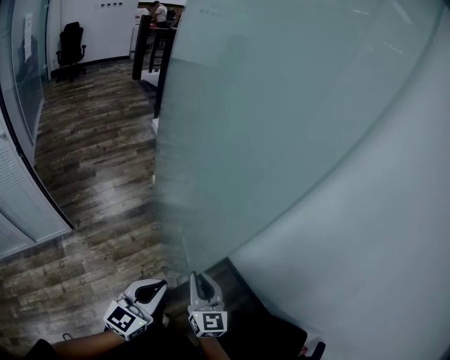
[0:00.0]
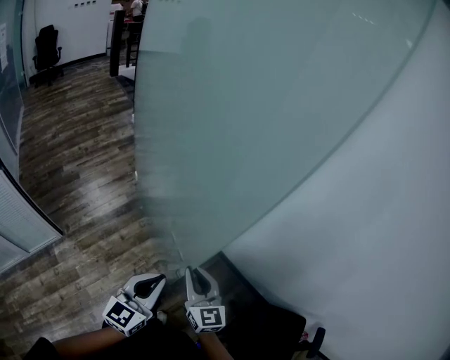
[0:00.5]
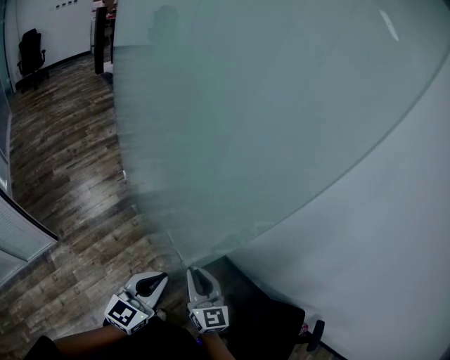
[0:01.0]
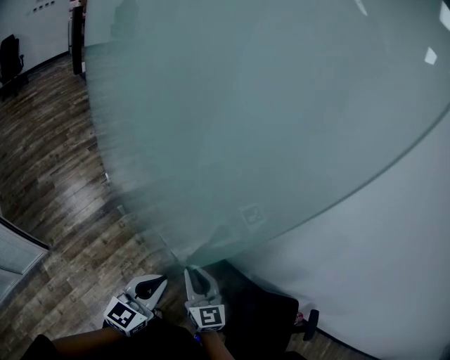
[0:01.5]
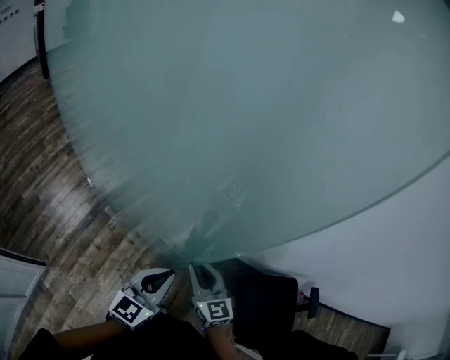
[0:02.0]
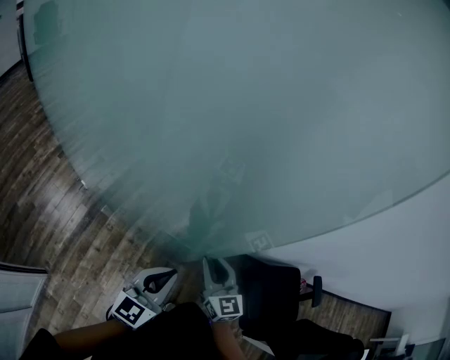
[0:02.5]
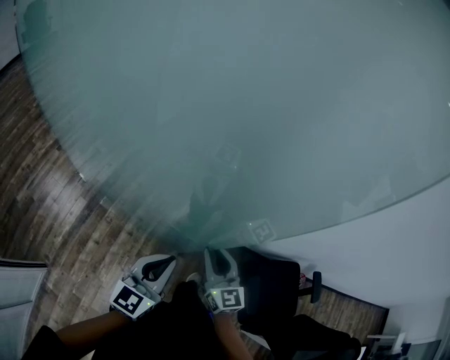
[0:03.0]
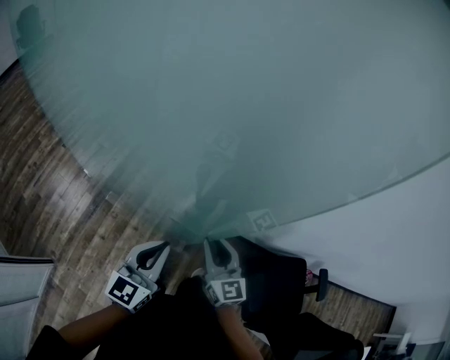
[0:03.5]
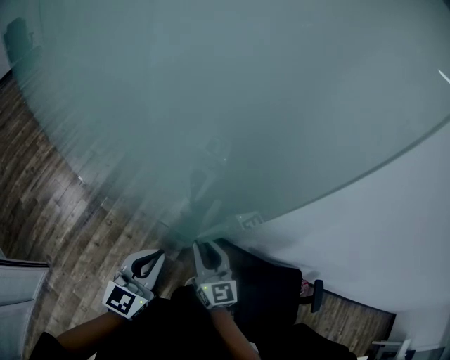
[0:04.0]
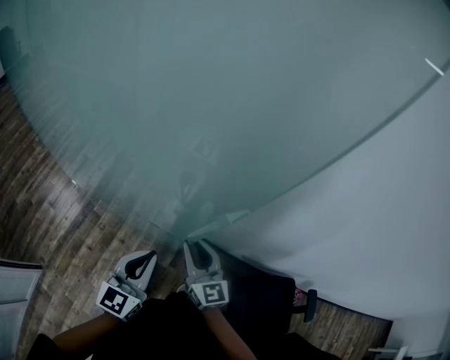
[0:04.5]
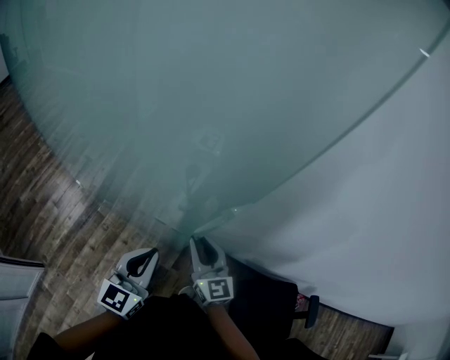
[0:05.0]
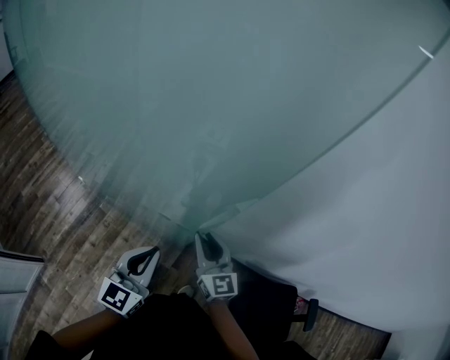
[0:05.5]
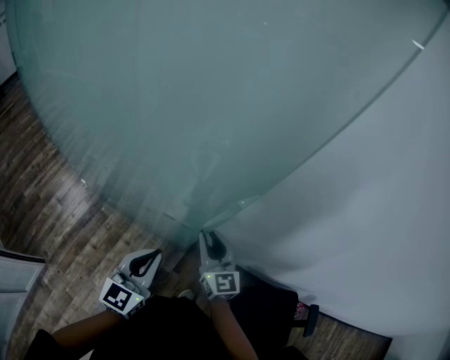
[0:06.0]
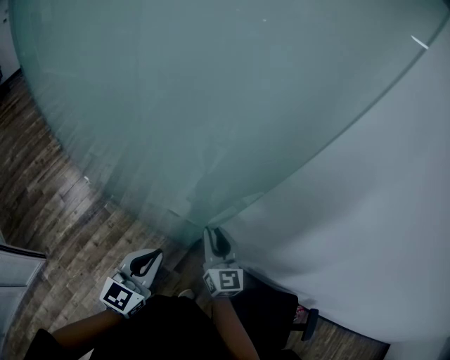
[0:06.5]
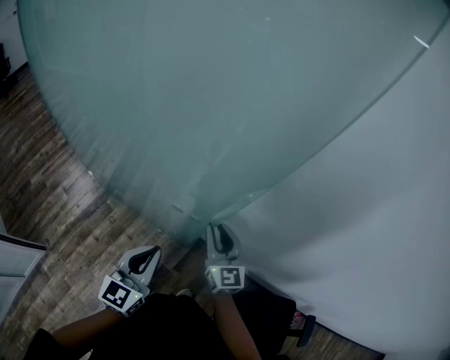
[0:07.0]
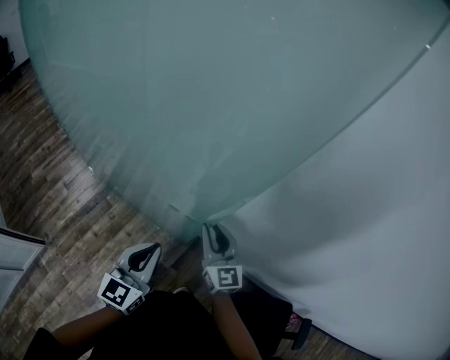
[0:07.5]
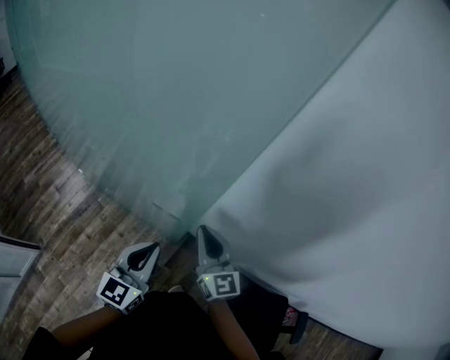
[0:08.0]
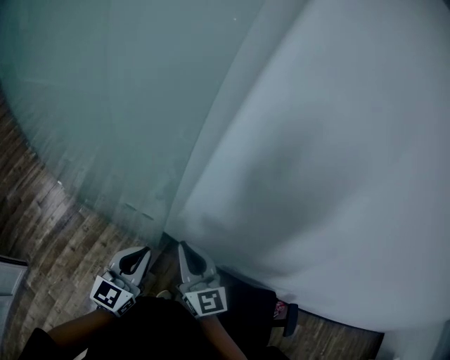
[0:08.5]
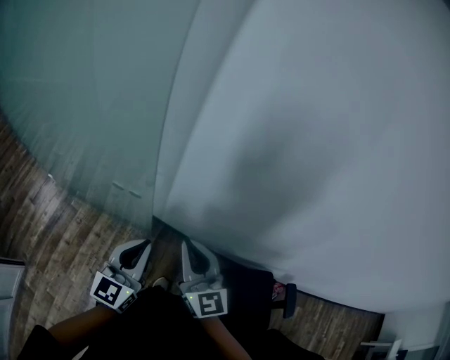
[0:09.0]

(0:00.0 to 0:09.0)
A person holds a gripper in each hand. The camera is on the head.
0:00.0 - 0:02.0: The right gripper goes roughly 15 cm to the right and forward, while the left gripper goes roughly 15 cm forward and to the right, and turns by approximately 30 degrees.
0:02.0 - 0:04.5: The grippers both shift forward by about 10 cm.
0:04.5 - 0:07.0: The right gripper is displaced forward by approximately 10 cm.
0:07.0 - 0:09.0: The left gripper travels to the right by roughly 10 cm. The right gripper goes approximately 15 cm backward, upward and to the right, and closes its fingers.

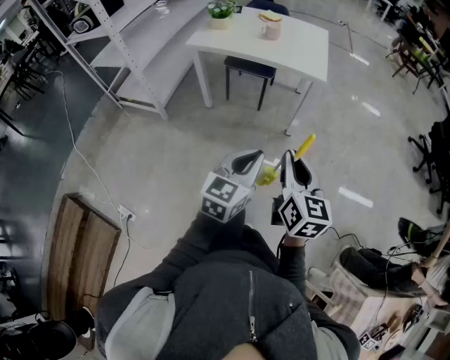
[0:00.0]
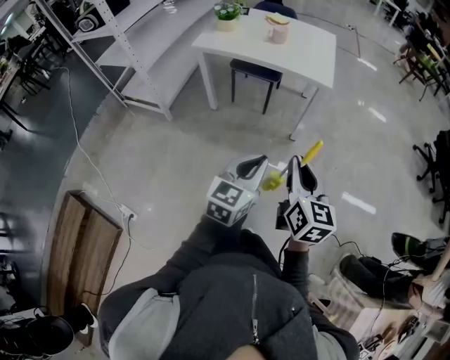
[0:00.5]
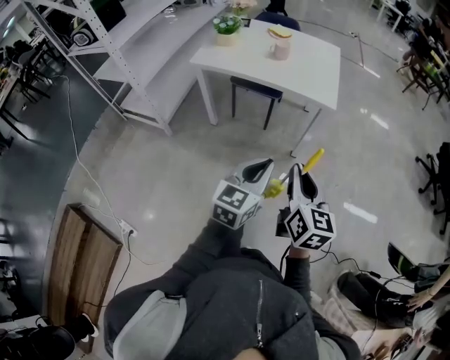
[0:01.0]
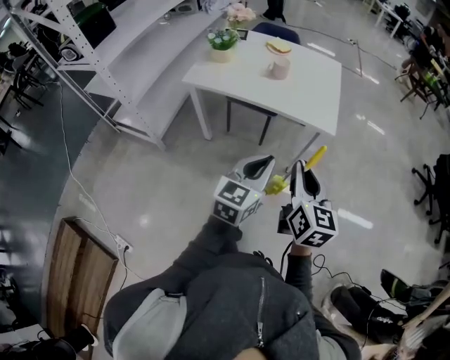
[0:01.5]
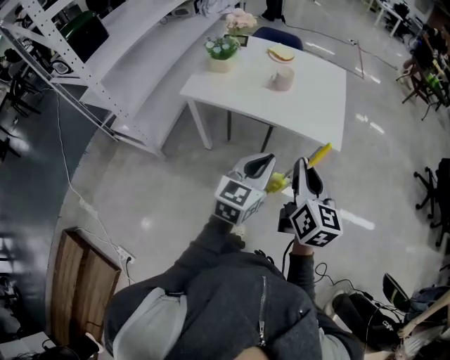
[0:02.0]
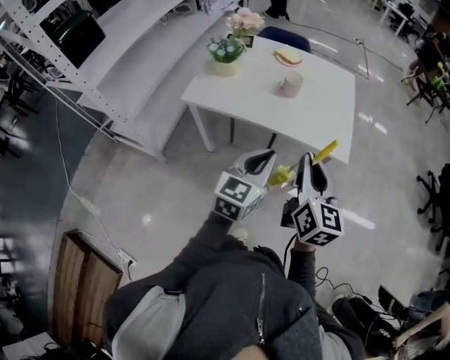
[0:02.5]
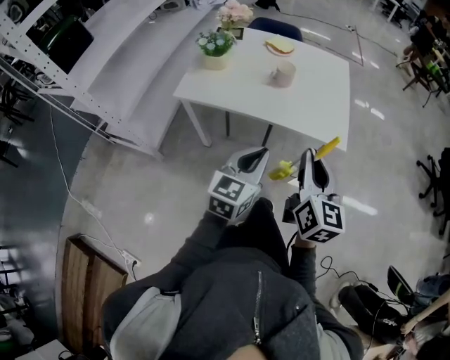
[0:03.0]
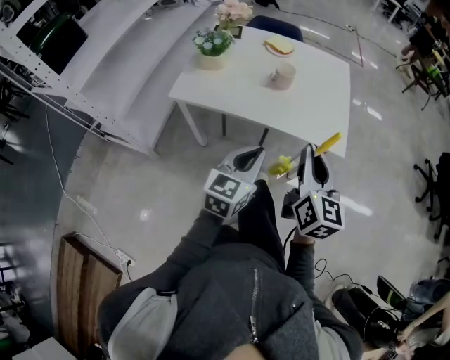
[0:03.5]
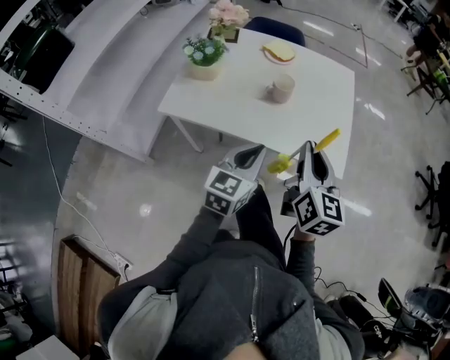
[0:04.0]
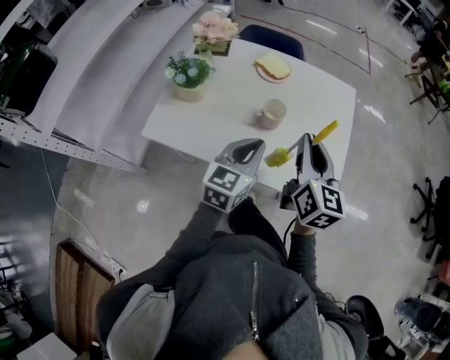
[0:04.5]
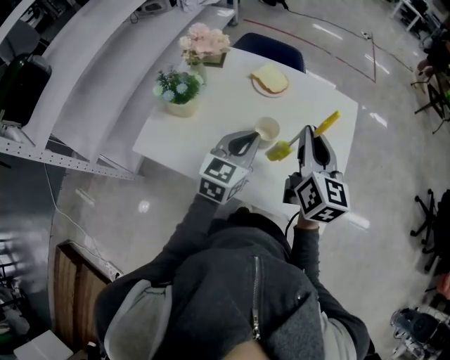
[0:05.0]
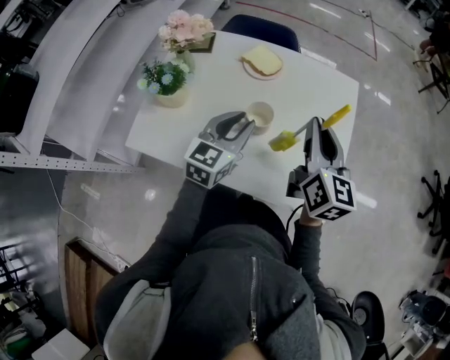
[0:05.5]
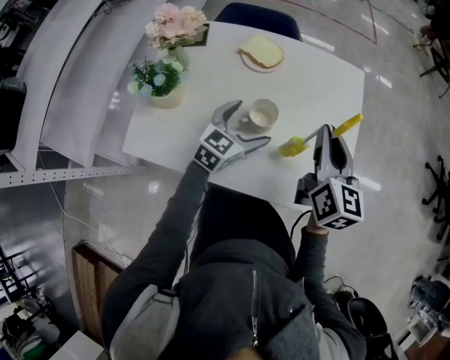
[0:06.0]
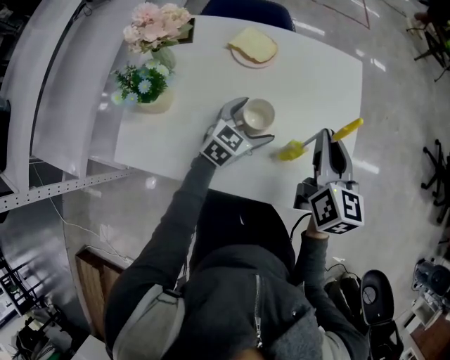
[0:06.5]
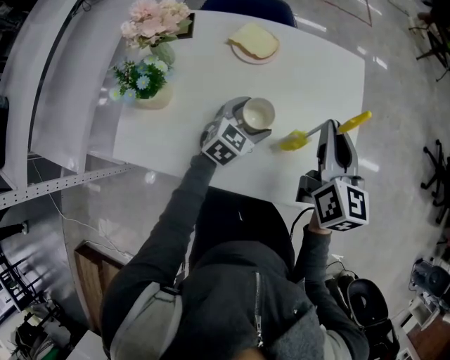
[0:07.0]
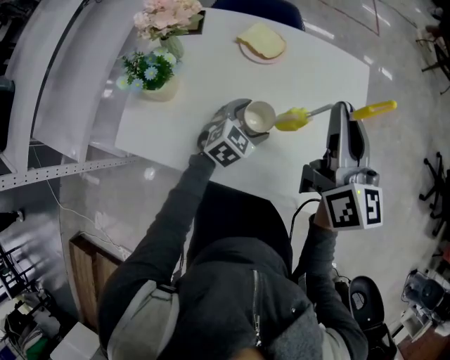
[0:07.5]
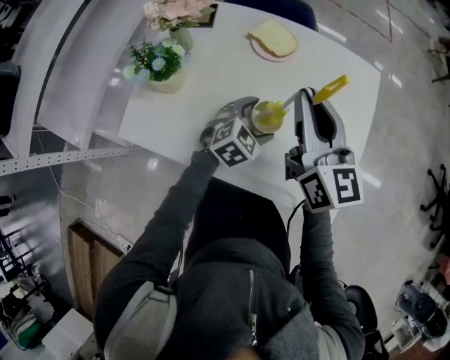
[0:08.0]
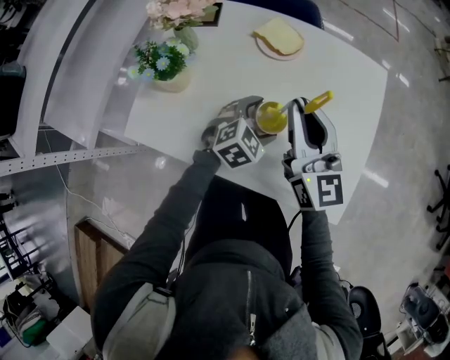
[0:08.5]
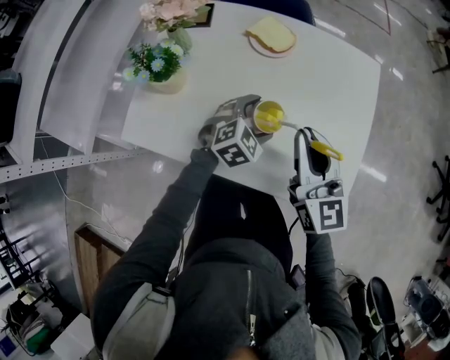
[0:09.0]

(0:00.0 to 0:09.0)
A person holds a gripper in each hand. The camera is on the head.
0:00.0 - 0:02.0: Both grippers move forward, some 35 cm.
0:02.0 - 0:04.5: Both grippers move forward, some 35 cm.
0:04.5 - 0:07.0: The left gripper moves forward and downward, approximately 25 cm, rotates about 30 degrees, and opens its fingers. Meanwhile the right gripper moves forward, some 15 cm.
0:07.0 - 0:09.0: The right gripper goes about 10 cm to the left and backward, and rotates roughly 30 degrees.

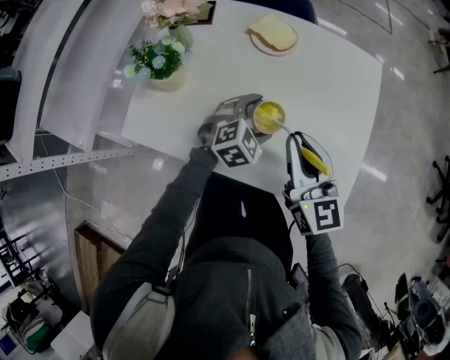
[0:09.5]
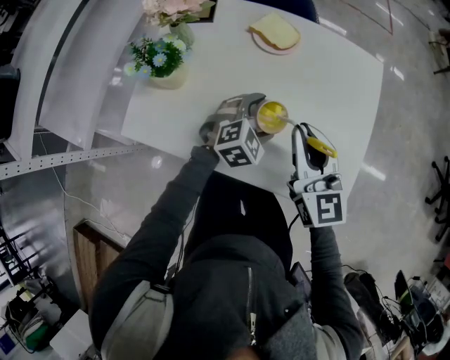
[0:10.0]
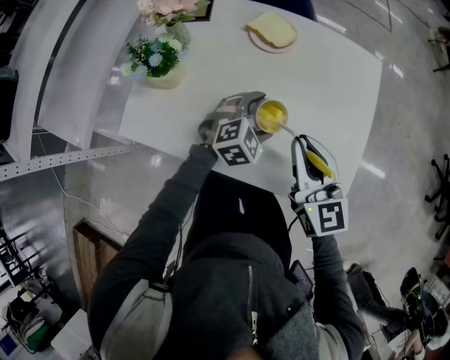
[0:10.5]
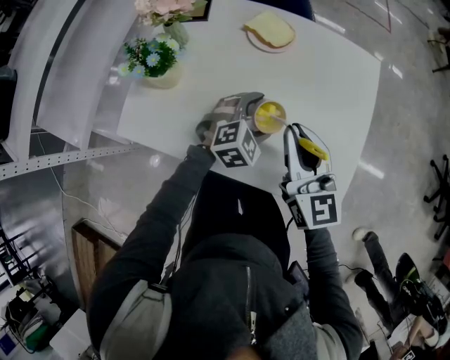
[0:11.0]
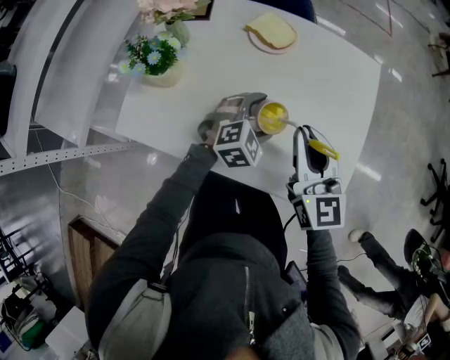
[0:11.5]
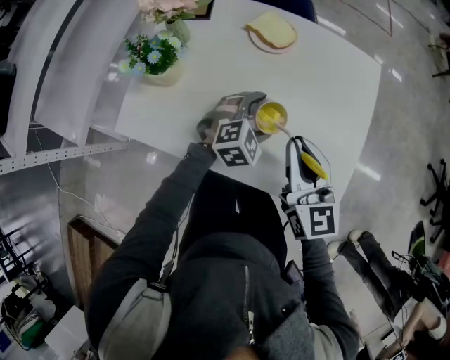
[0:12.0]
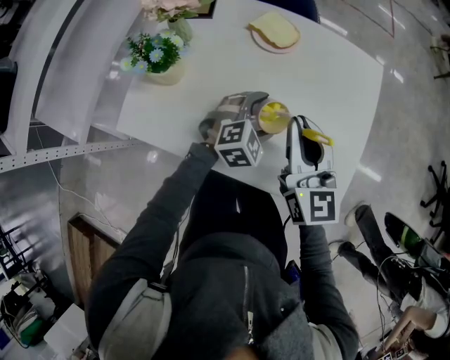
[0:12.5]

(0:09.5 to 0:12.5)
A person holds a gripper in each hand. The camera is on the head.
0:09.5 - 0:12.5: The grippers make only small movements.

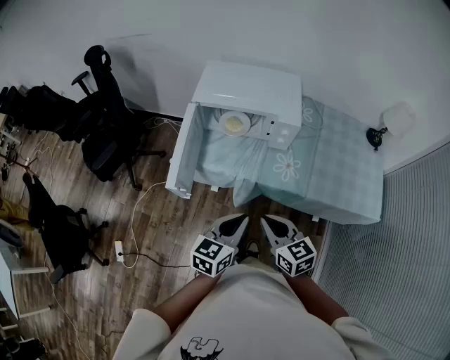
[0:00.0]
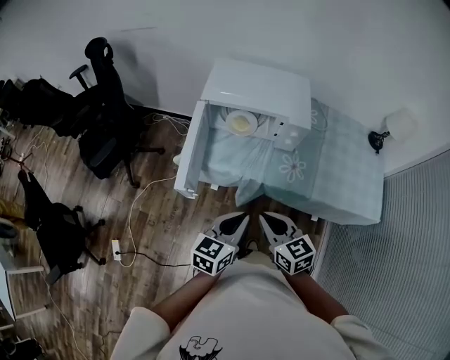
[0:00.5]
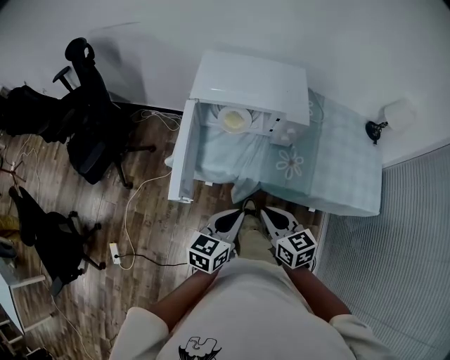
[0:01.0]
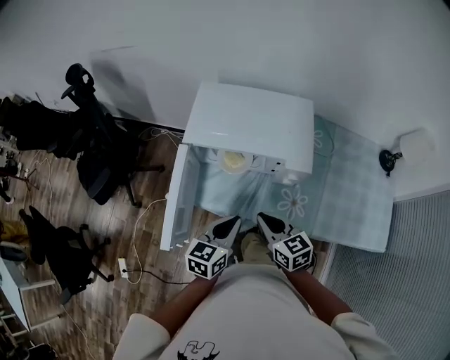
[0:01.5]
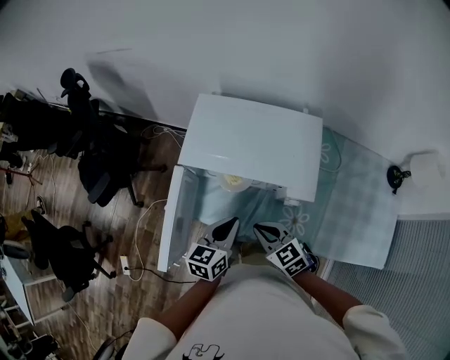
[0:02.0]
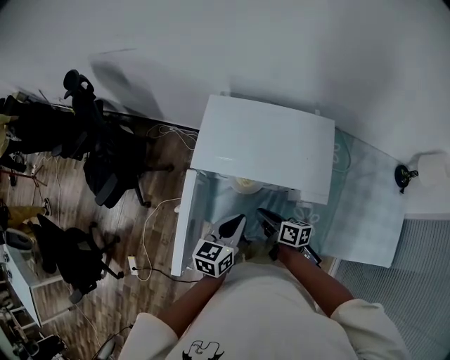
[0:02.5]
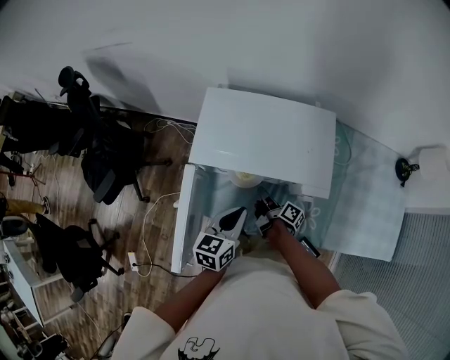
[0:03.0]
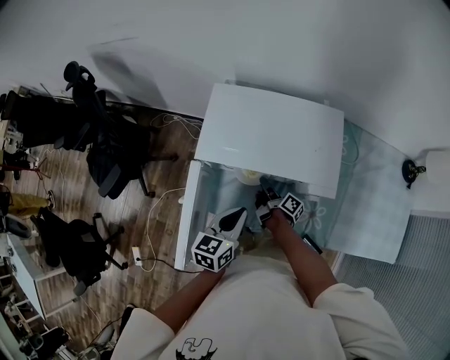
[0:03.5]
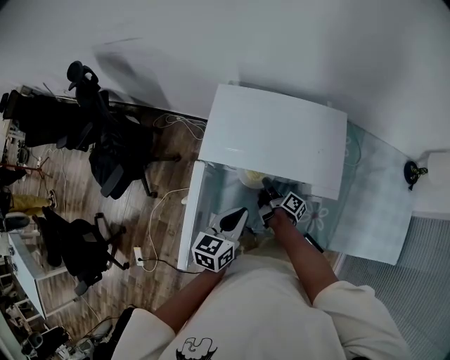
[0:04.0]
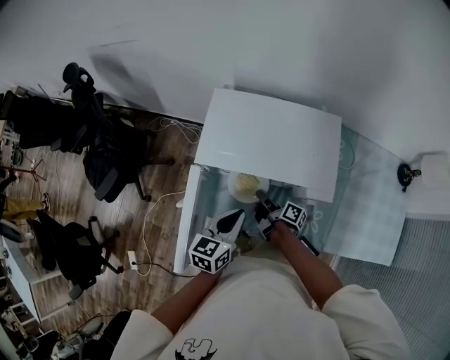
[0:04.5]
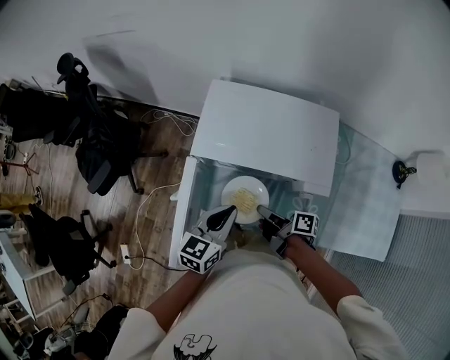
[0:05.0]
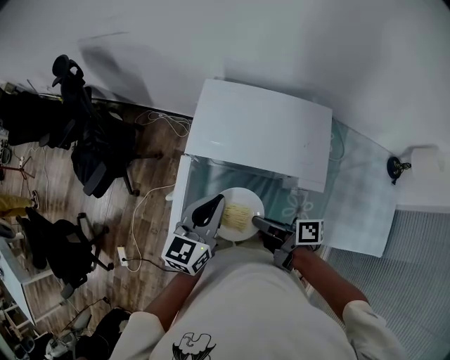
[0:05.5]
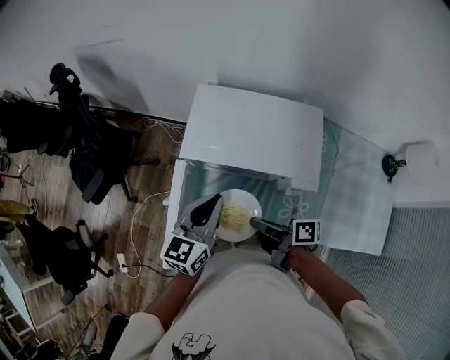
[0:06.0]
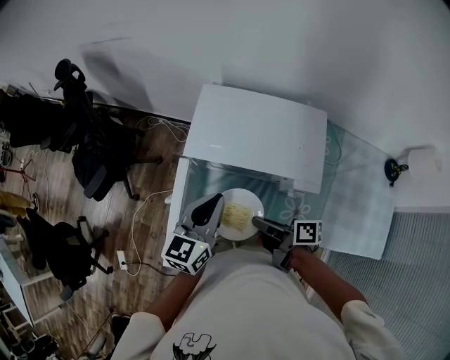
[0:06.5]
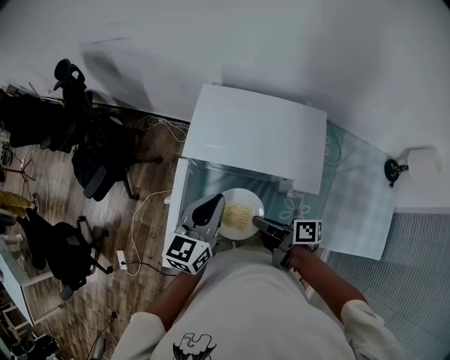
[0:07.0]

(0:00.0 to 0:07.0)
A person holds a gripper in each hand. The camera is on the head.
0:00.0 - 0:02.0: Both grippers travel together forward, about 25 cm. The right gripper swivels about 20 degrees.
0:02.0 - 0:03.5: The right gripper shifts some 20 cm downward and forward, rotates around the line of its fingers by approximately 90 degrees, clockwise from behind, and opens its fingers.
0:03.5 - 0:05.0: The right gripper heads upward and backward, covering about 15 cm, turns by about 30 degrees, and closes its fingers.
0:05.0 - 0:07.0: Both grippers move upward, approximately 5 cm.
